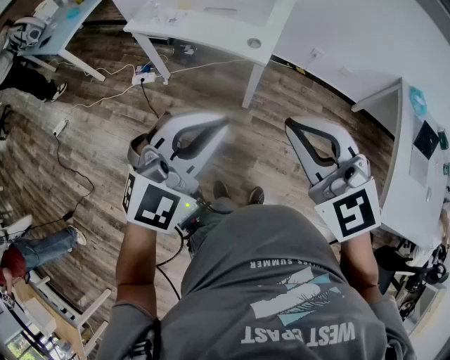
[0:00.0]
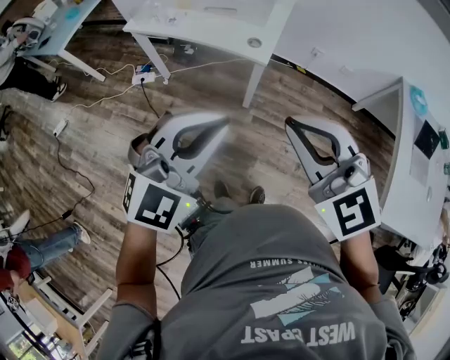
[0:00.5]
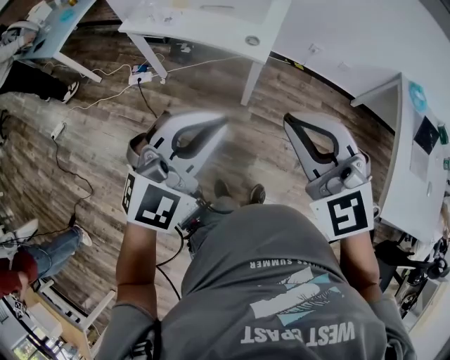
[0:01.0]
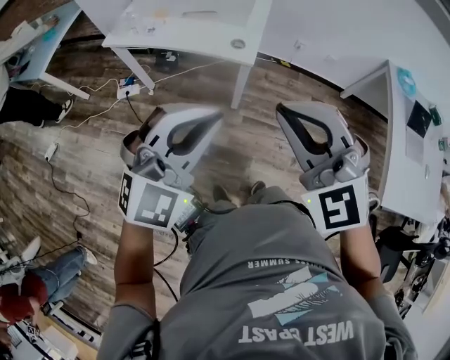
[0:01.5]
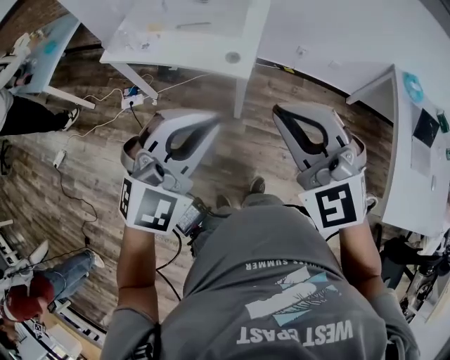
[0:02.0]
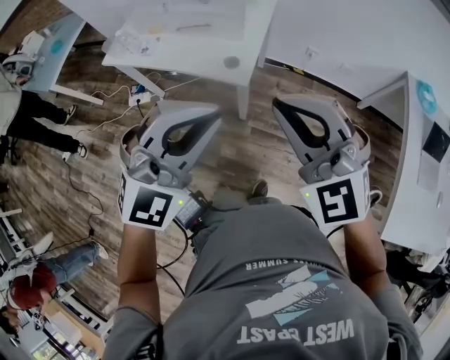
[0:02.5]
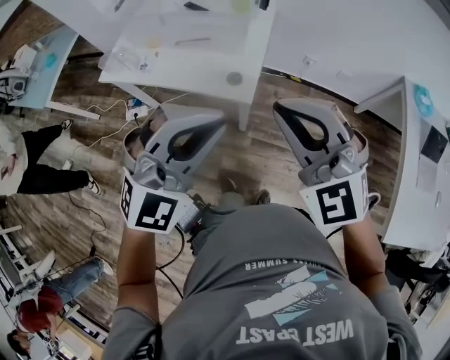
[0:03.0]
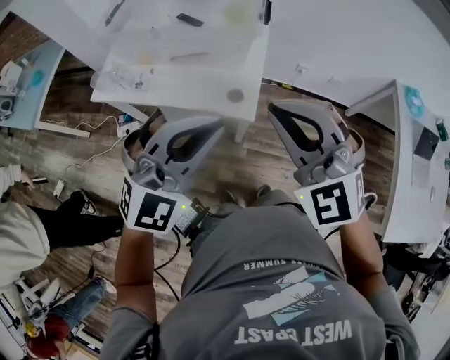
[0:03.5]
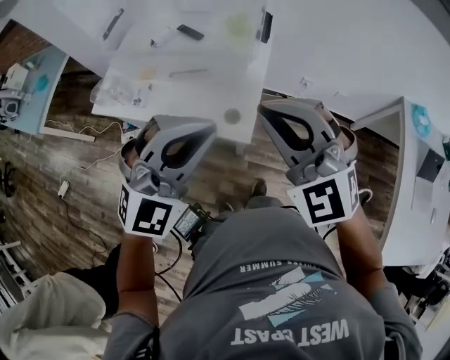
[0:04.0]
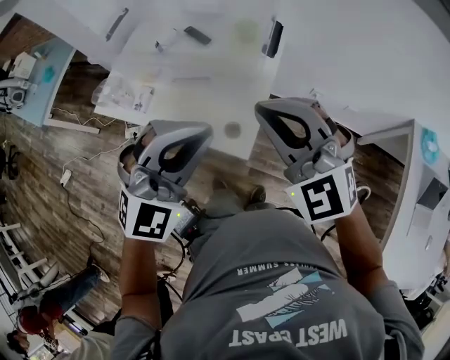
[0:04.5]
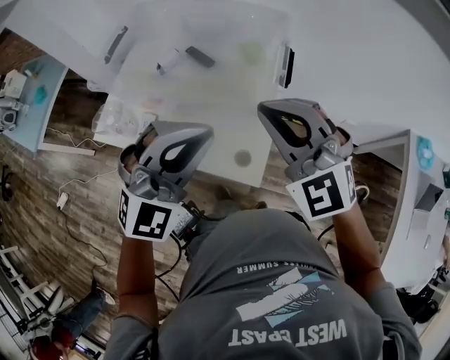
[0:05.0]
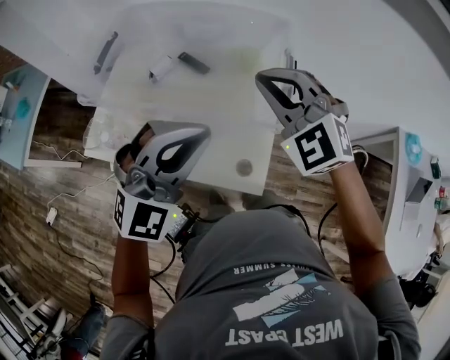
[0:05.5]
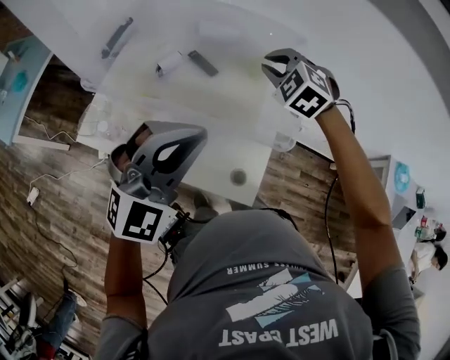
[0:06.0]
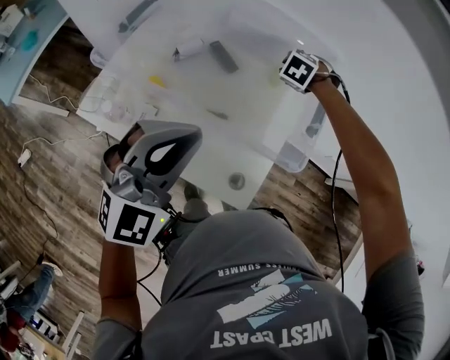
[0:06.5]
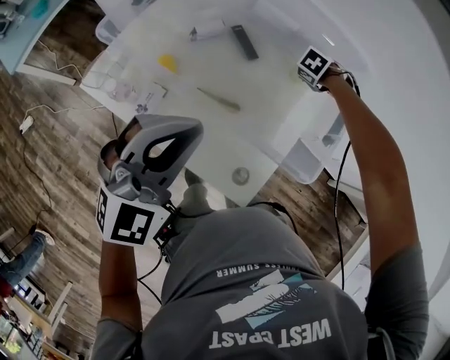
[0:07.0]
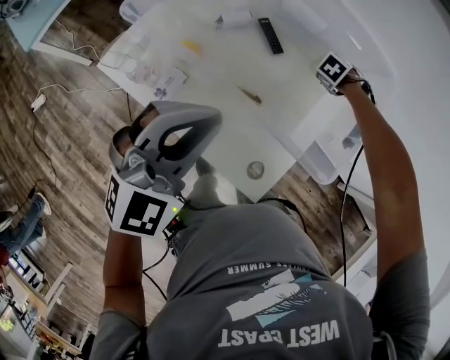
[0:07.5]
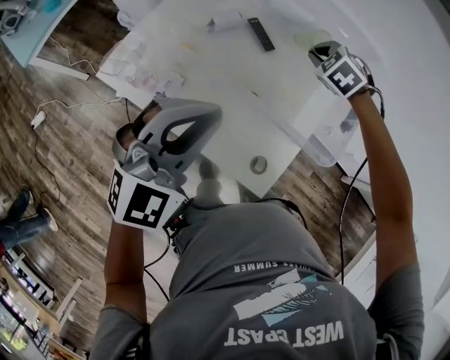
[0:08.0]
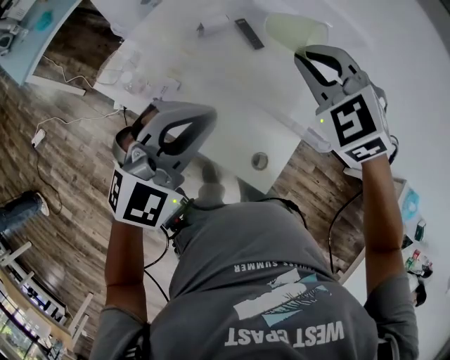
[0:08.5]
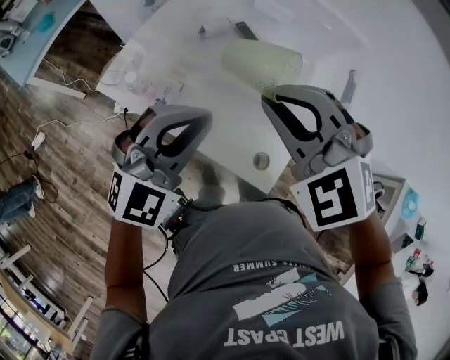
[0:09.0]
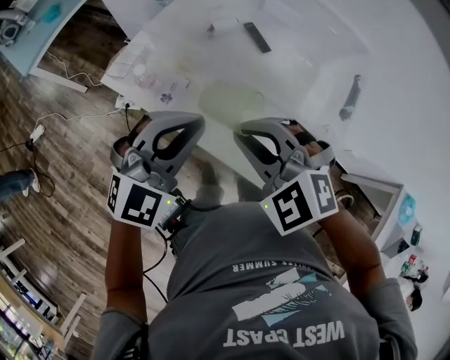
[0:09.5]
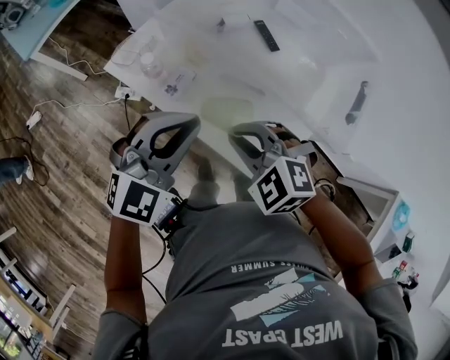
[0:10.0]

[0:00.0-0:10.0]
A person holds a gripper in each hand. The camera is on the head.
0.0 to 2.0 s: The two grippers go approximately 10 cm forward.
2.0 to 4.0 s: The two grippers go roughly 25 cm forward.
4.0 to 6.0 s: The left gripper is displaced forward and to the left by some 25 cm, while the right gripper is displaced forward by about 40 cm, and points its fingers some 30 degrees further downward.
6.0 to 8.0 s: The left gripper moves approximately 10 cm, while the right gripper travels downward by approximately 10 cm.
8.0 to 10.0 s: The left gripper moves approximately 10 cm. Meanwhile the right gripper reaches about 20 cm upward, then returns, and turns by roughly 30 degrees.

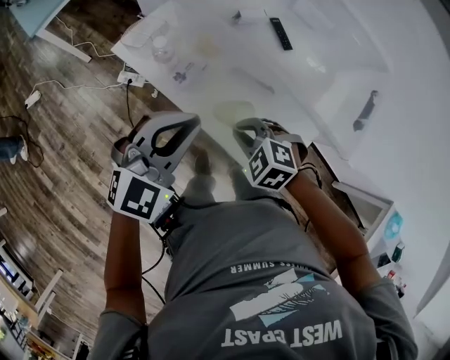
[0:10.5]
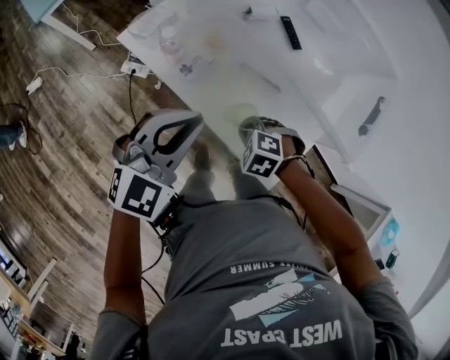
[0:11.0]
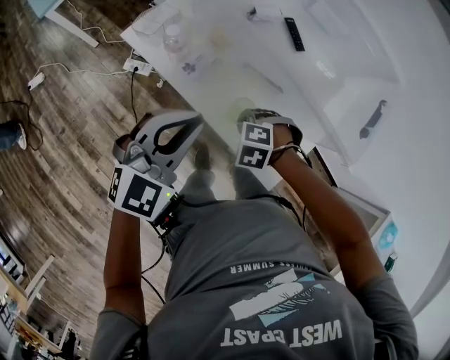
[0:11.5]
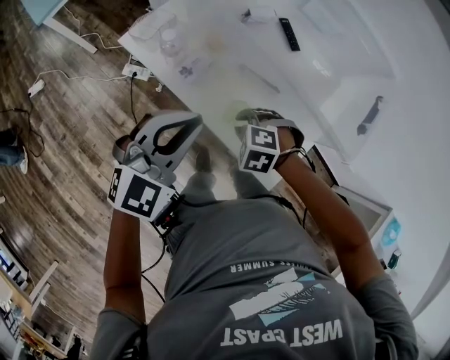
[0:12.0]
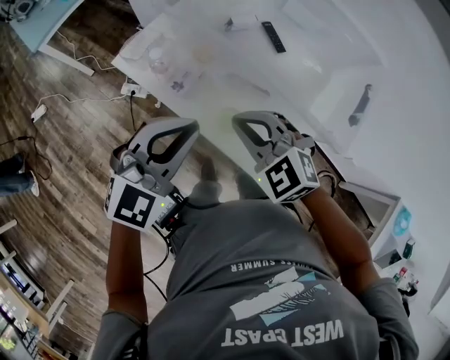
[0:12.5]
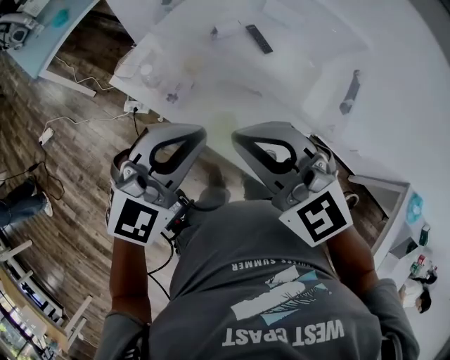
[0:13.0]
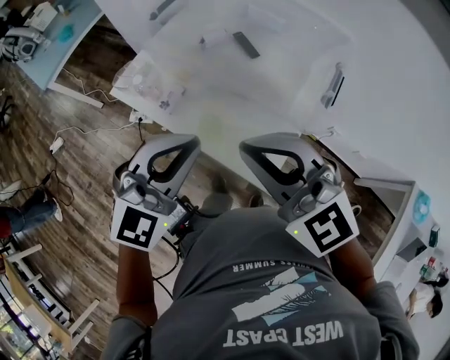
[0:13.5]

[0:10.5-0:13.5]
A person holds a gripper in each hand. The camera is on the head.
10.5 to 12.0 s: The right gripper heads downward, covering approximately 5 cm.
12.0 to 13.5 s: The left gripper heads upward, covering about 10 cm. Meanwhile the right gripper heads upward, covering roughly 35 cm, and points its fingers approximately 60 degrees further upward.

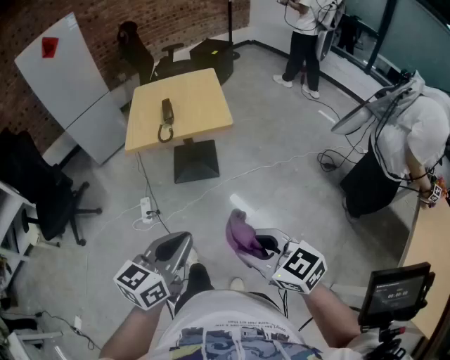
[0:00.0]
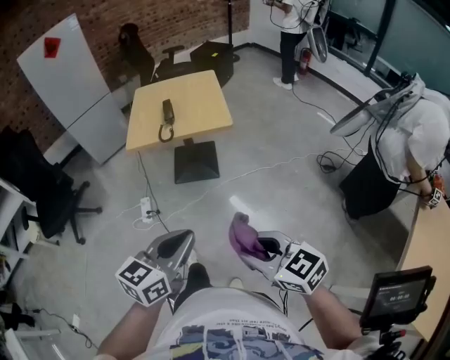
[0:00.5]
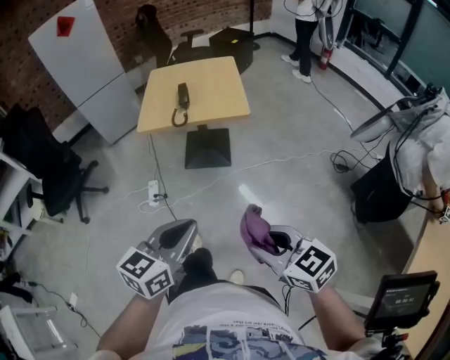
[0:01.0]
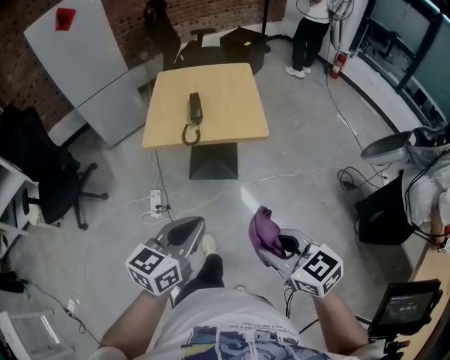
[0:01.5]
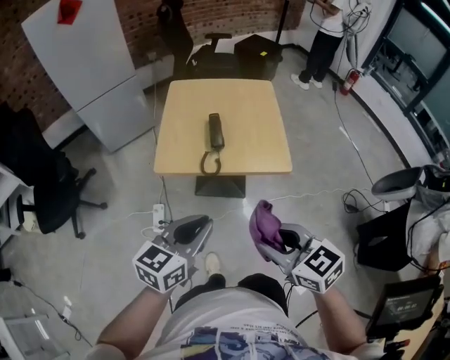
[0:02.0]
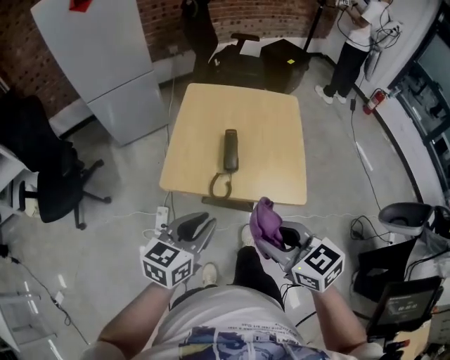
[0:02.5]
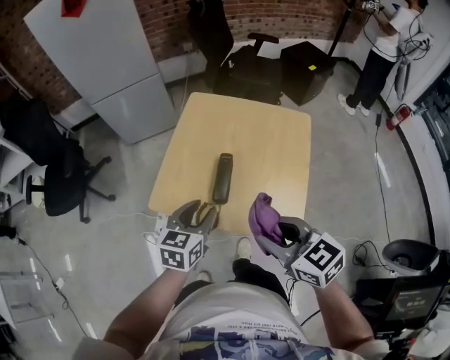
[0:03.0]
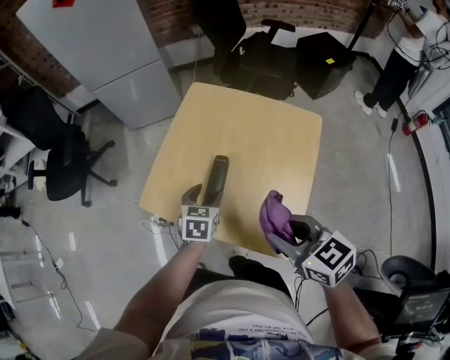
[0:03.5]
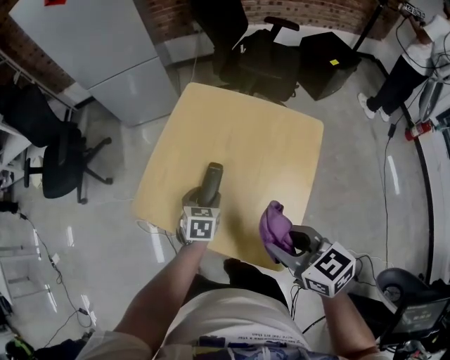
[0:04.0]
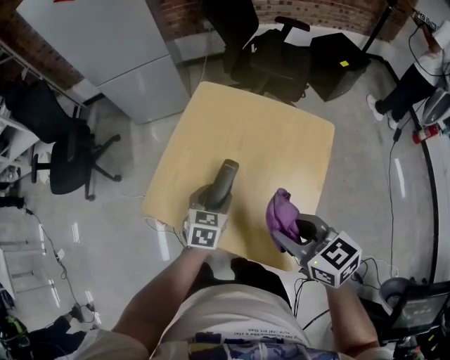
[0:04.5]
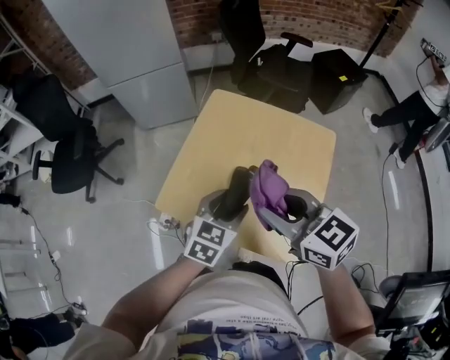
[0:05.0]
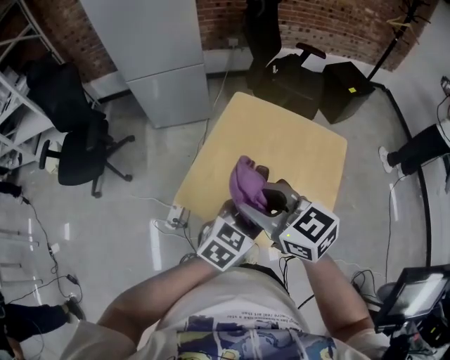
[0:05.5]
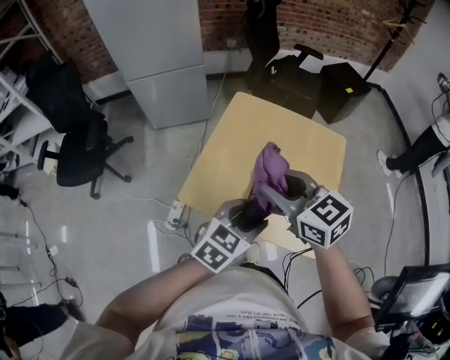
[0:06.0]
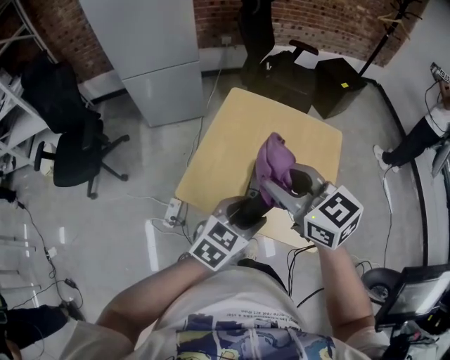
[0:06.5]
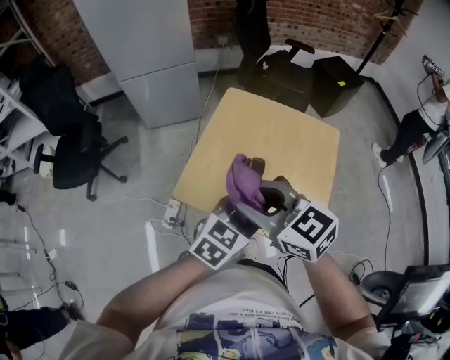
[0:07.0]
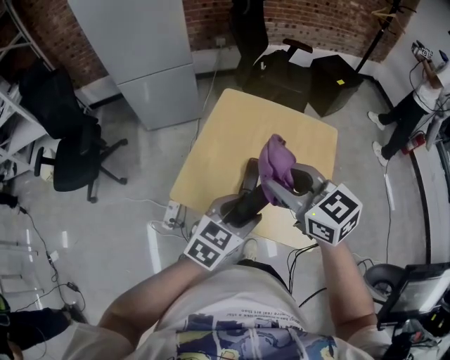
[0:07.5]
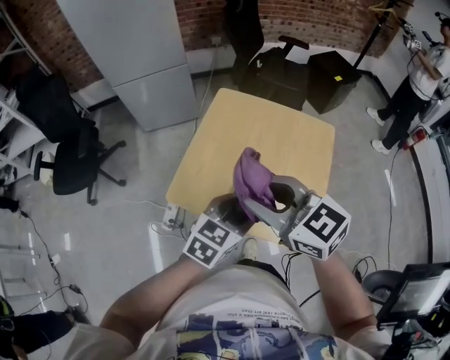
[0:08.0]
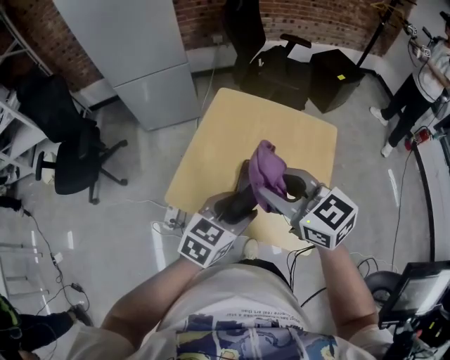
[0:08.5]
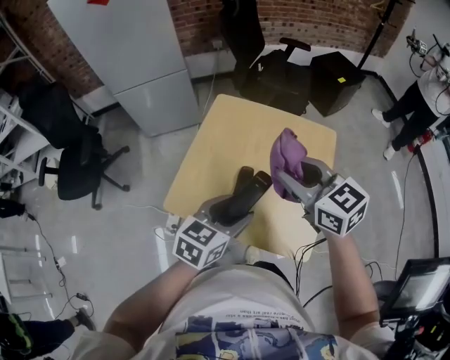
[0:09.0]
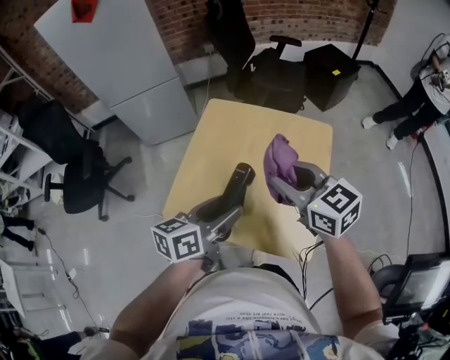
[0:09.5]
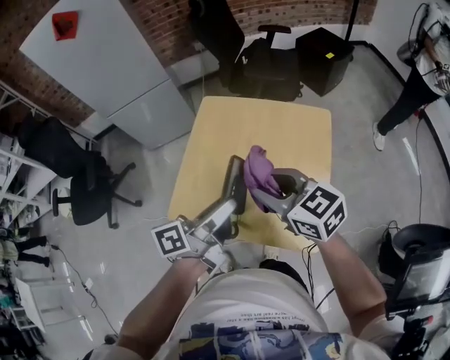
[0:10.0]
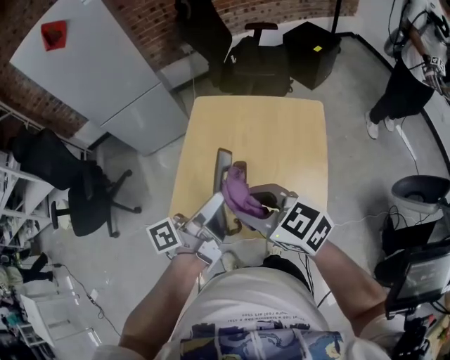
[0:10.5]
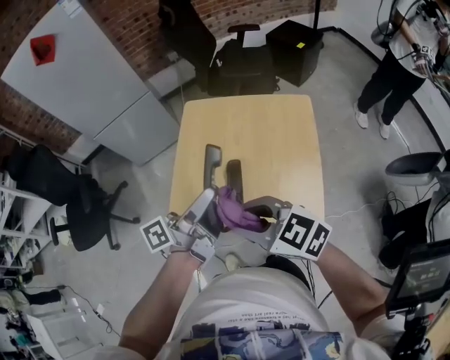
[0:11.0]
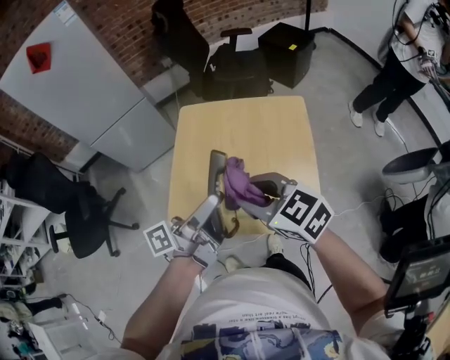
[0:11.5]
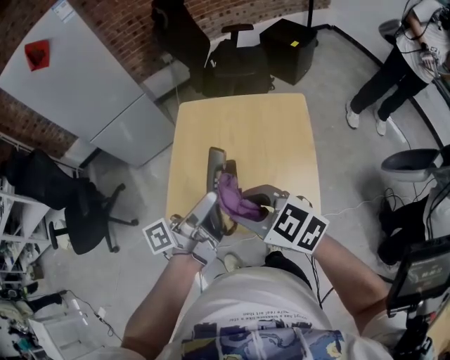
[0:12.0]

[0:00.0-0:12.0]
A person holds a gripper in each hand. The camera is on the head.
0.0 to 2.0 s: The two grippers go about 25 cm forward.
2.0 to 4.0 s: The right gripper changes place by roughly 35 cm, and rotates roughly 20 degrees, while the left gripper changes place by about 40 cm, tips its fingers downward by some 30 degrees, and opens its fingers.
4.0 to 6.0 s: The right gripper travels to the left, forward and upward by about 20 cm, while the left gripper moves upward and backward, approximately 20 cm, and turns by roughly 40 degrees.
6.0 to 8.0 s: The right gripper goes to the left and returns, roughly 5 cm each way.
8.0 to 10.0 s: The right gripper goes some 10 cm to the right, downward and forward. Meanwhile the left gripper shifts by about 5 cm, and rolls counterclockwise, seen from behind, by some 60 degrees.
10.0 to 12.0 s: The right gripper moves backward and to the left, roughly 10 cm.

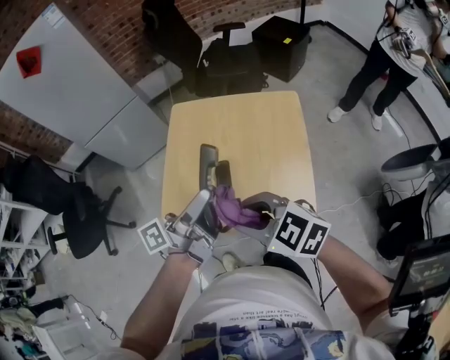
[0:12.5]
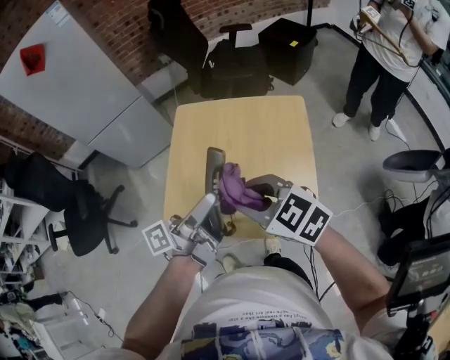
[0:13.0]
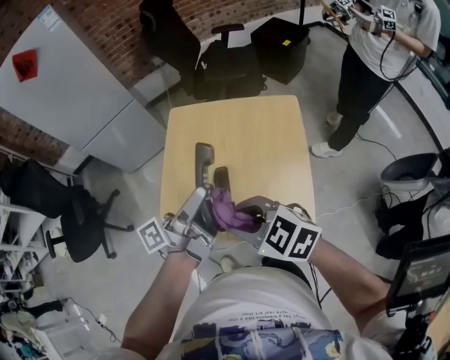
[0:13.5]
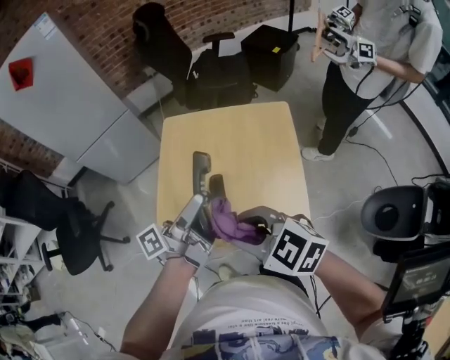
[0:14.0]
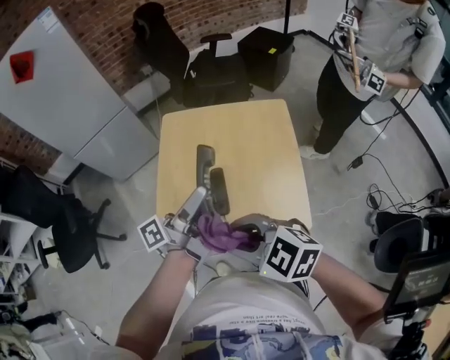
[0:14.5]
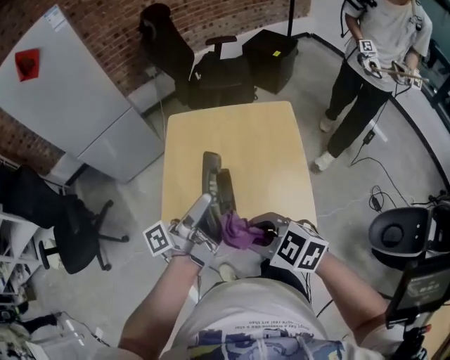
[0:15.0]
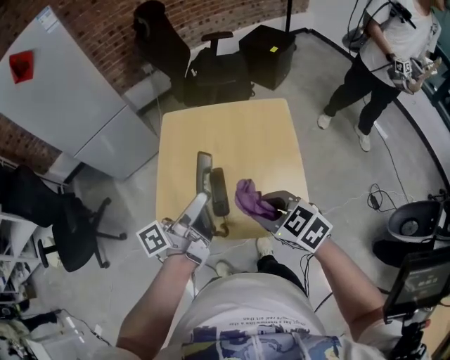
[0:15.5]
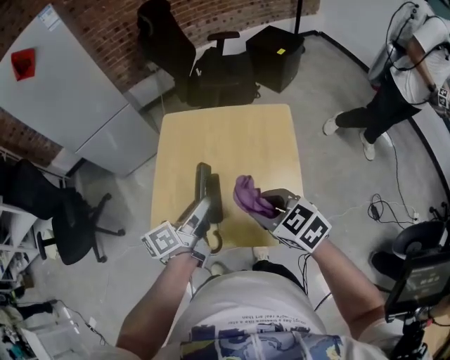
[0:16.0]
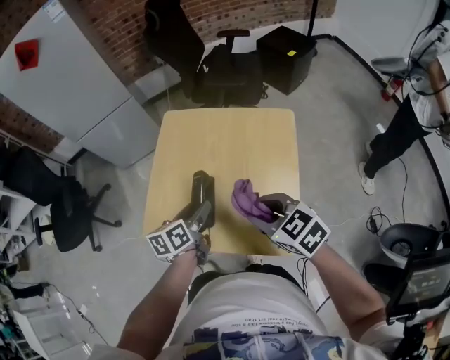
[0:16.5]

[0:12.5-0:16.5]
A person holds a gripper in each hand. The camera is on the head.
12.5 to 14.5 s: The grippers move only a little.
14.5 to 16.5 s: The right gripper heads to the right, downward and forward, covering about 15 cm; the left gripper shifts approximately 20 cm downward, and tips its fingers downward by some 50 degrees.
